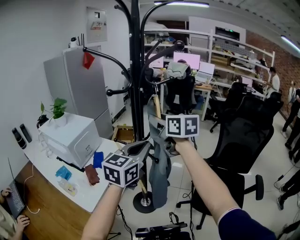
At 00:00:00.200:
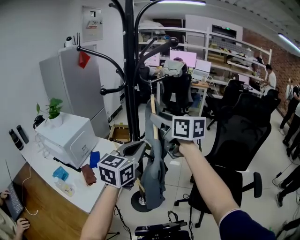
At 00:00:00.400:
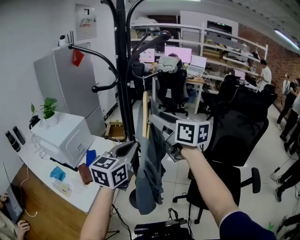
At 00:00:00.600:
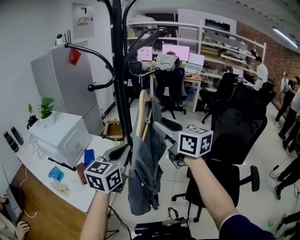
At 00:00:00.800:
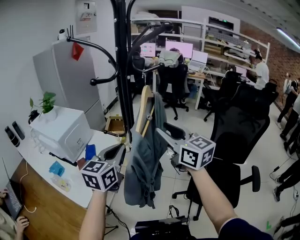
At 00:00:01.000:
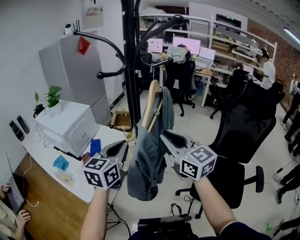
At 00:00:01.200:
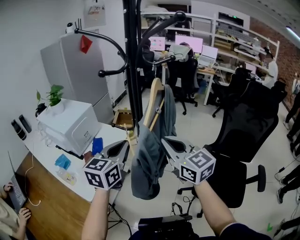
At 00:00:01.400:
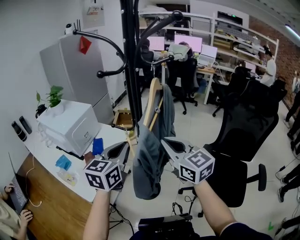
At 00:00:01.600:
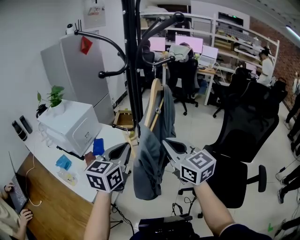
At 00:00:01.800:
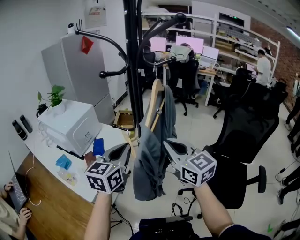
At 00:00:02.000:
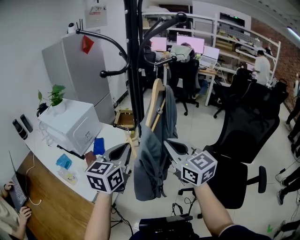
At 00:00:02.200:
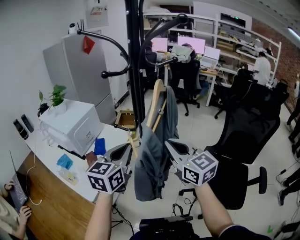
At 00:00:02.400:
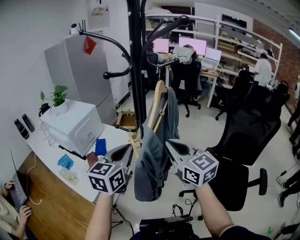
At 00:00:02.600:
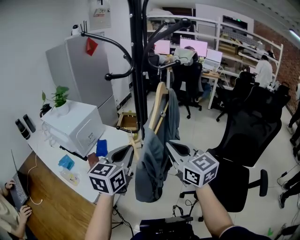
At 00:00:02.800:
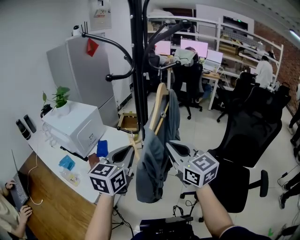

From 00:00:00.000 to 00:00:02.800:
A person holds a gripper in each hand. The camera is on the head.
From 00:00:00.000 to 00:00:01.400: The left gripper is displaced to the left and downward by some 10 cm. Meanwhile the right gripper heads backward and downward, covering about 15 cm, and closes.
From 00:00:01.400 to 00:00:02.800: Neither gripper changes place.

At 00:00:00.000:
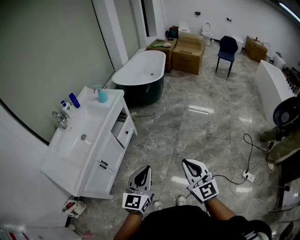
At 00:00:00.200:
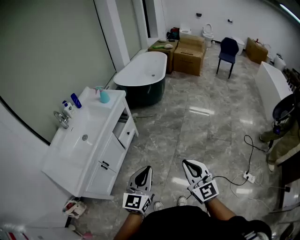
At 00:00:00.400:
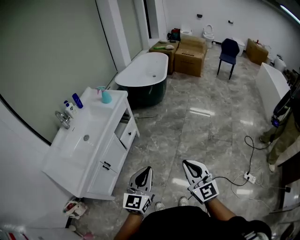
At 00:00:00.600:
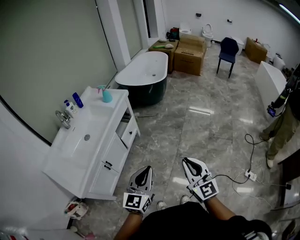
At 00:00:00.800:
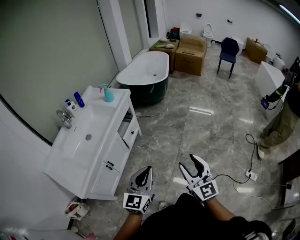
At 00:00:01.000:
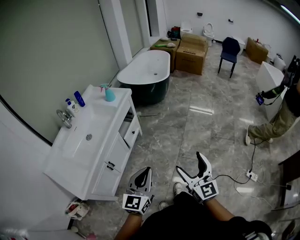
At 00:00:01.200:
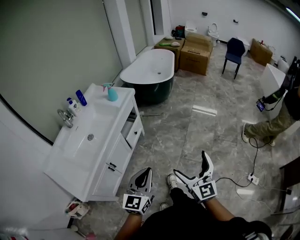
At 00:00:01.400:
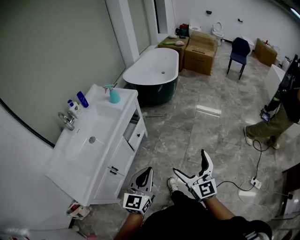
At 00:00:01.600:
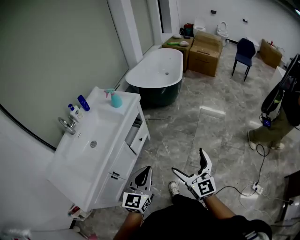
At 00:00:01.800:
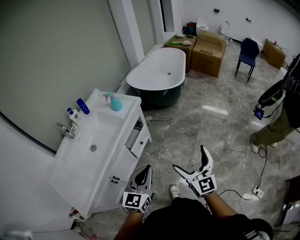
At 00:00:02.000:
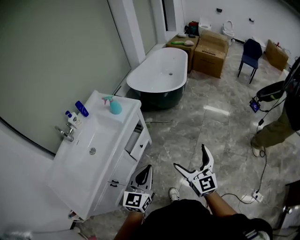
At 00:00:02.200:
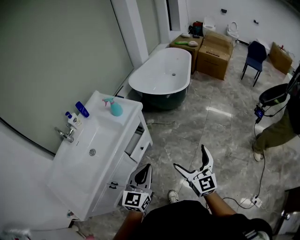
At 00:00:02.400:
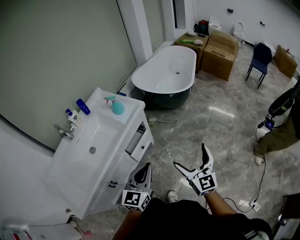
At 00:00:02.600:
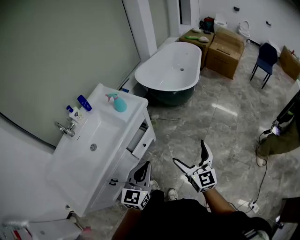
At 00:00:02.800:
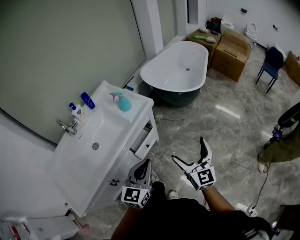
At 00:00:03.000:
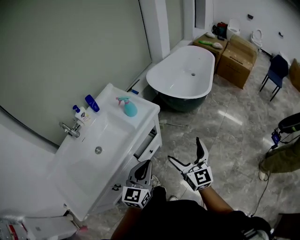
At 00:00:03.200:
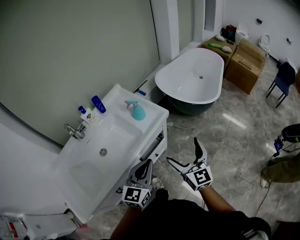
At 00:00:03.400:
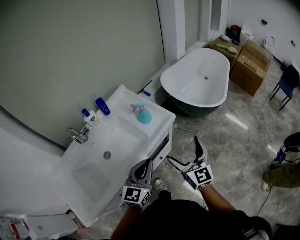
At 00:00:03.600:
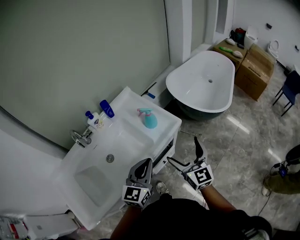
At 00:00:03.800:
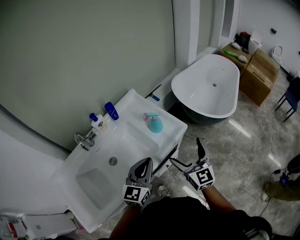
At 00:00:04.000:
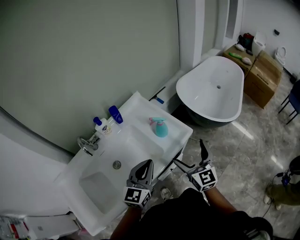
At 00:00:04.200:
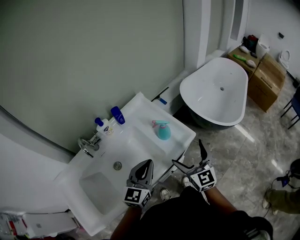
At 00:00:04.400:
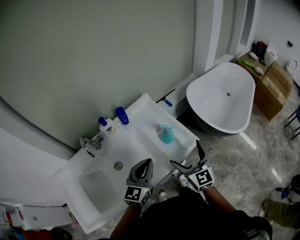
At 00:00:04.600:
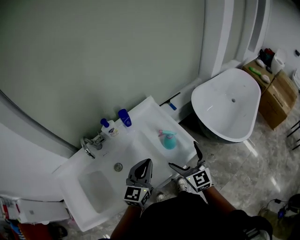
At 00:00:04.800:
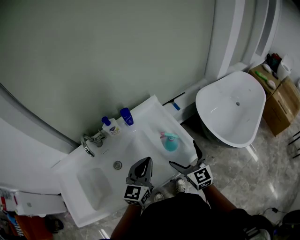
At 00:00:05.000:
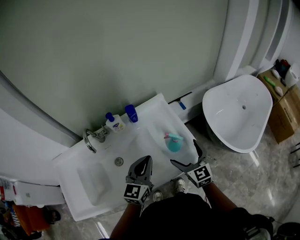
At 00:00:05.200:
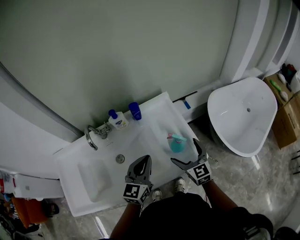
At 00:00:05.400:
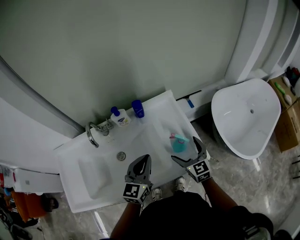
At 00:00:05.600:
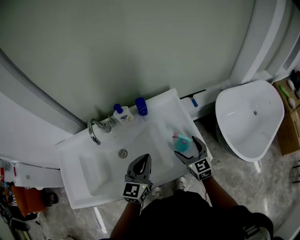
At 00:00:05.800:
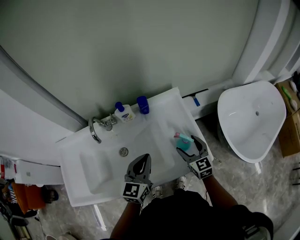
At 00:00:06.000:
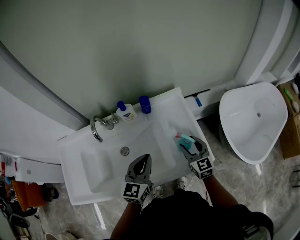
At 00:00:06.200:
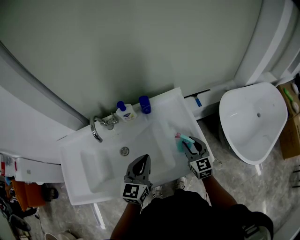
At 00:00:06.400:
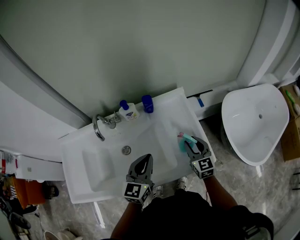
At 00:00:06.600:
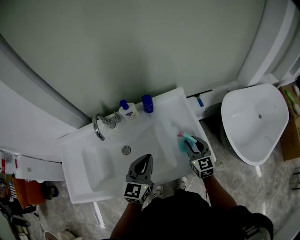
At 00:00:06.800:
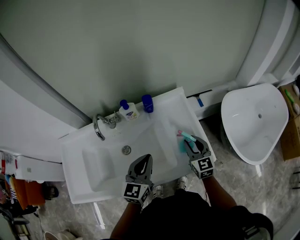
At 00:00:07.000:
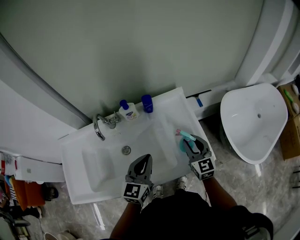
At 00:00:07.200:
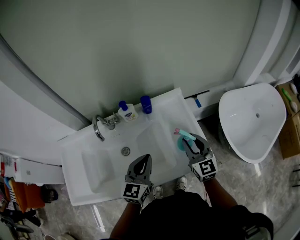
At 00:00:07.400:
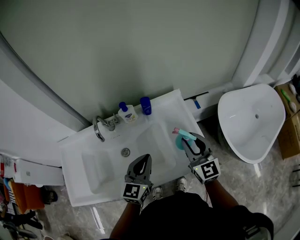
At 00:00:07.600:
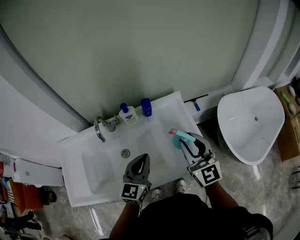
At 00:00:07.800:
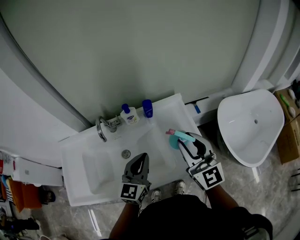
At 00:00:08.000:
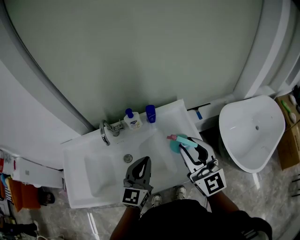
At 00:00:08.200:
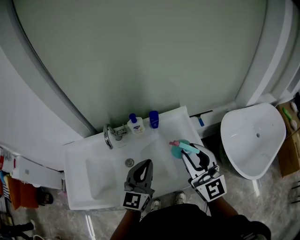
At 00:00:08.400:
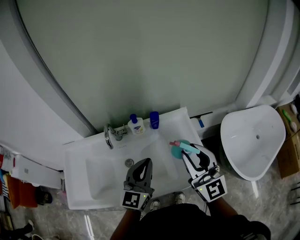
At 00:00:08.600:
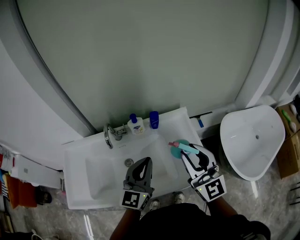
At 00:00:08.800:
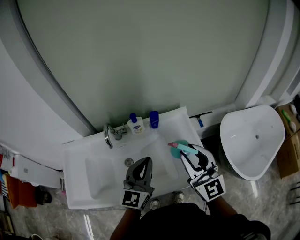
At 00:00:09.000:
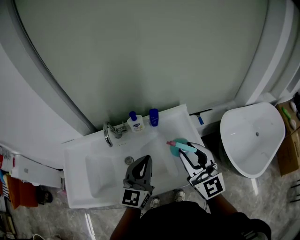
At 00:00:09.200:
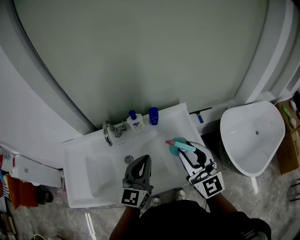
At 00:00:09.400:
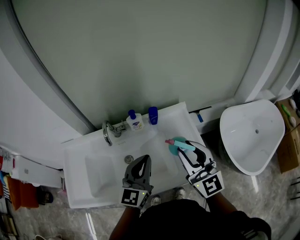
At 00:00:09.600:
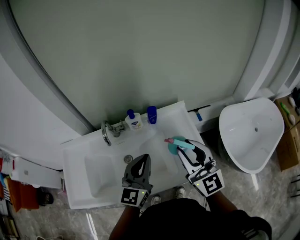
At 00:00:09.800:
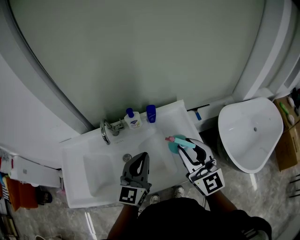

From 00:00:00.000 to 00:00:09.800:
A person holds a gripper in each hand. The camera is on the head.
From 00:00:00.000 to 00:00:01.400: The left gripper goes some 15 cm to the left and forward, while the right gripper goes about 15 cm forward and to the left, and opens.
From 00:00:01.400 to 00:00:02.800: The grippers both shift forward by about 30 cm.
From 00:00:02.800 to 00:00:04.200: Both grippers travel together forward and to the left, approximately 30 cm.
From 00:00:04.200 to 00:00:05.600: The right gripper shifts by approximately 20 cm, and rotates roughly 30 degrees, while the left gripper ends up some 10 cm from where it was, and turns by about 30 degrees.
From 00:00:05.600 to 00:00:07.000: The right gripper closes.
From 00:00:07.000 to 00:00:08.400: The right gripper goes approximately 20 cm upward, and changes its angle by roughly 30 degrees, while the left gripper moves upward, some 10 cm.
From 00:00:08.400 to 00:00:09.800: The grippers make only small movements.

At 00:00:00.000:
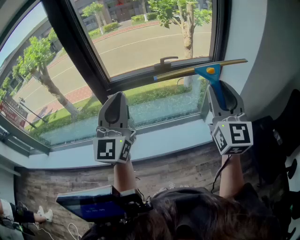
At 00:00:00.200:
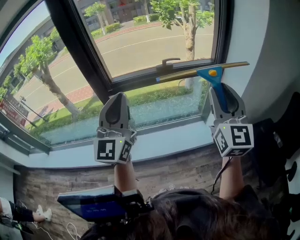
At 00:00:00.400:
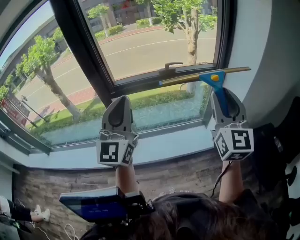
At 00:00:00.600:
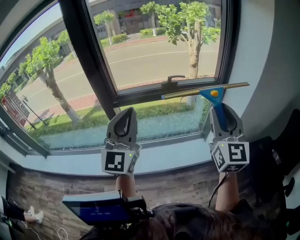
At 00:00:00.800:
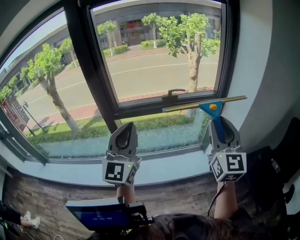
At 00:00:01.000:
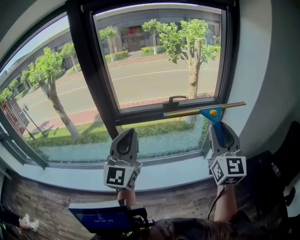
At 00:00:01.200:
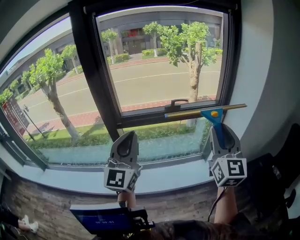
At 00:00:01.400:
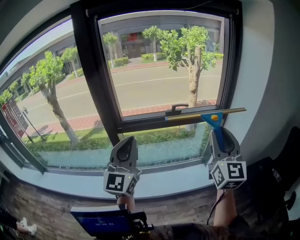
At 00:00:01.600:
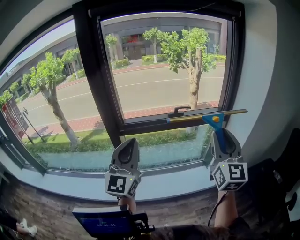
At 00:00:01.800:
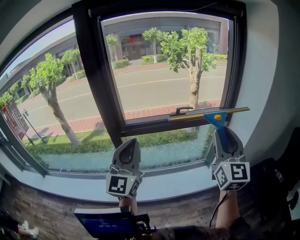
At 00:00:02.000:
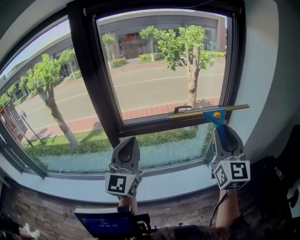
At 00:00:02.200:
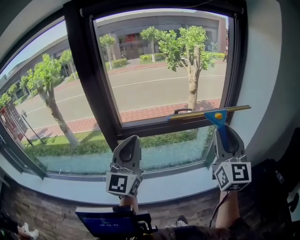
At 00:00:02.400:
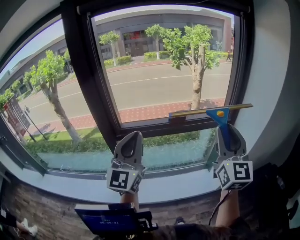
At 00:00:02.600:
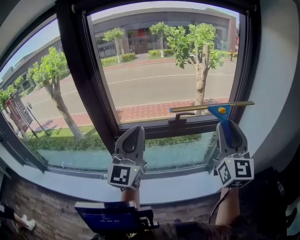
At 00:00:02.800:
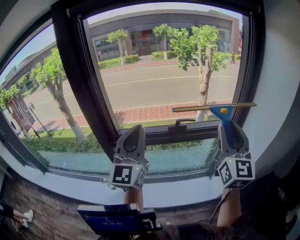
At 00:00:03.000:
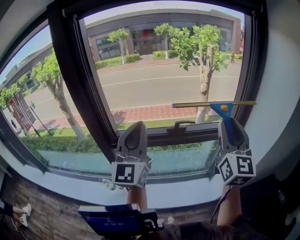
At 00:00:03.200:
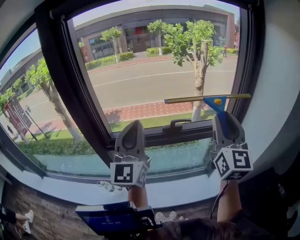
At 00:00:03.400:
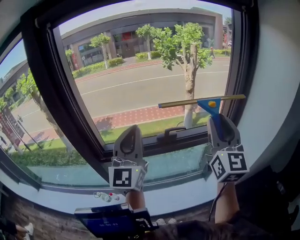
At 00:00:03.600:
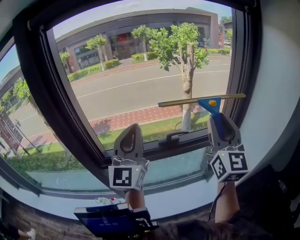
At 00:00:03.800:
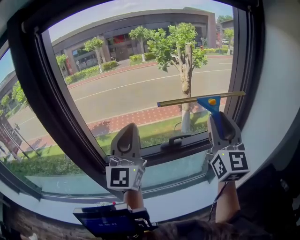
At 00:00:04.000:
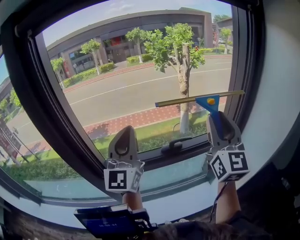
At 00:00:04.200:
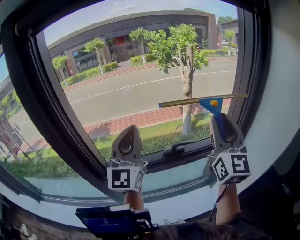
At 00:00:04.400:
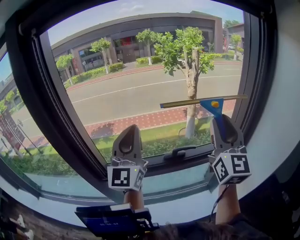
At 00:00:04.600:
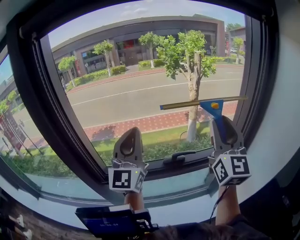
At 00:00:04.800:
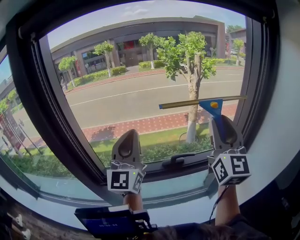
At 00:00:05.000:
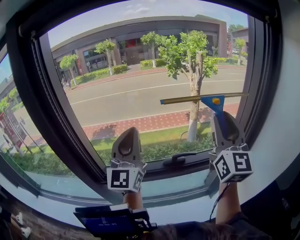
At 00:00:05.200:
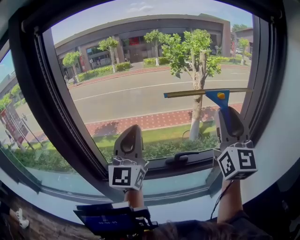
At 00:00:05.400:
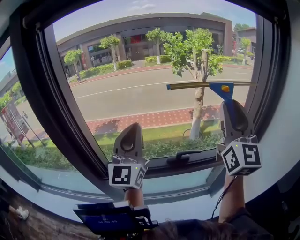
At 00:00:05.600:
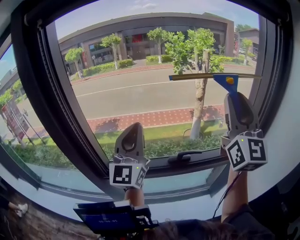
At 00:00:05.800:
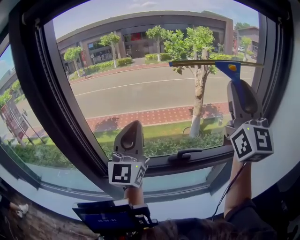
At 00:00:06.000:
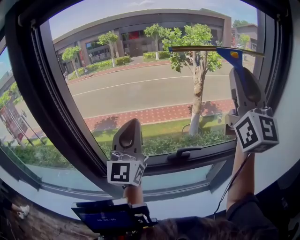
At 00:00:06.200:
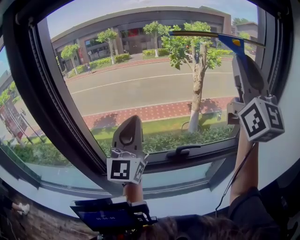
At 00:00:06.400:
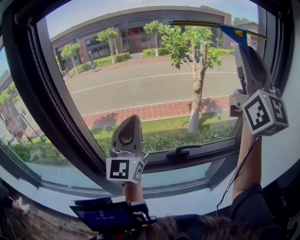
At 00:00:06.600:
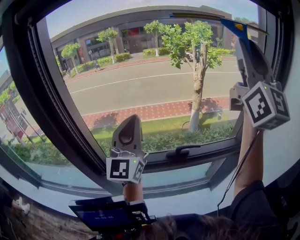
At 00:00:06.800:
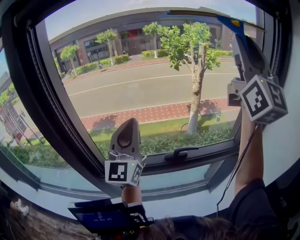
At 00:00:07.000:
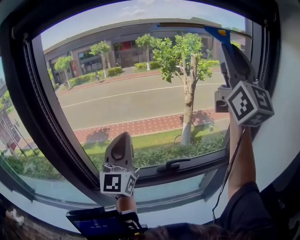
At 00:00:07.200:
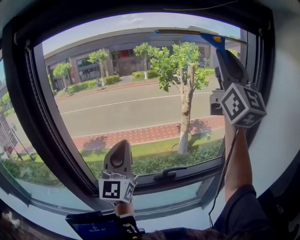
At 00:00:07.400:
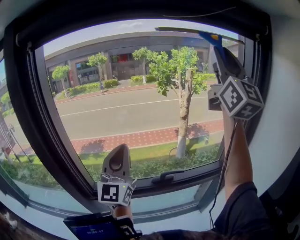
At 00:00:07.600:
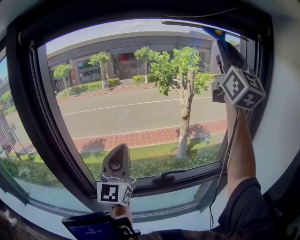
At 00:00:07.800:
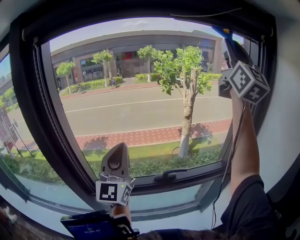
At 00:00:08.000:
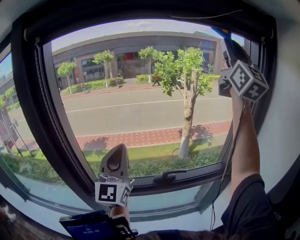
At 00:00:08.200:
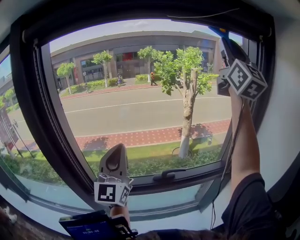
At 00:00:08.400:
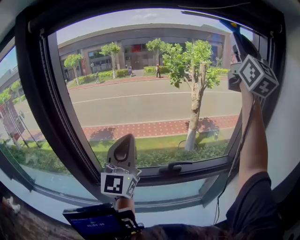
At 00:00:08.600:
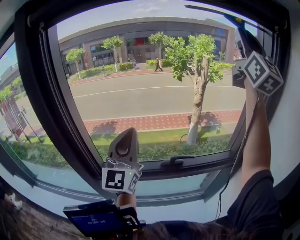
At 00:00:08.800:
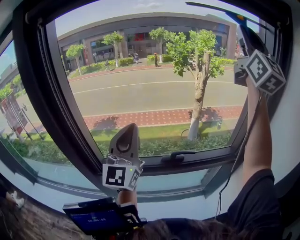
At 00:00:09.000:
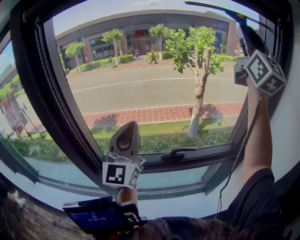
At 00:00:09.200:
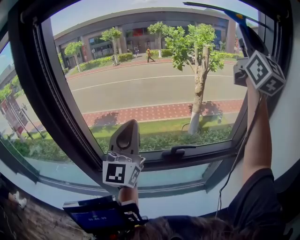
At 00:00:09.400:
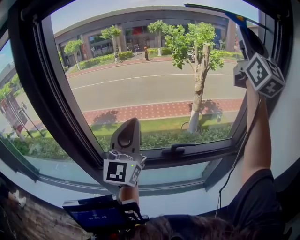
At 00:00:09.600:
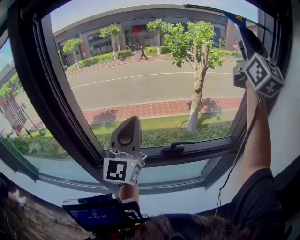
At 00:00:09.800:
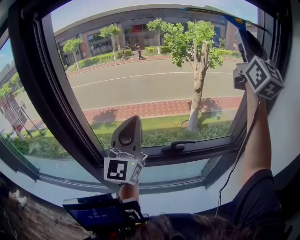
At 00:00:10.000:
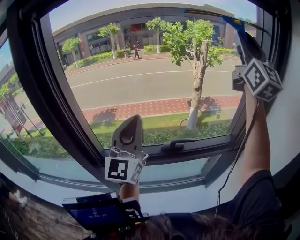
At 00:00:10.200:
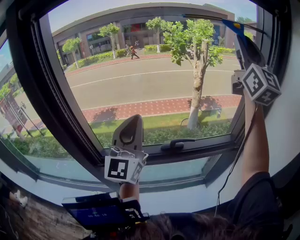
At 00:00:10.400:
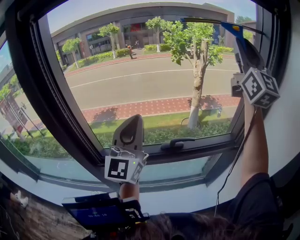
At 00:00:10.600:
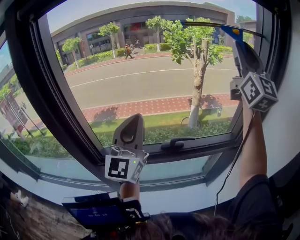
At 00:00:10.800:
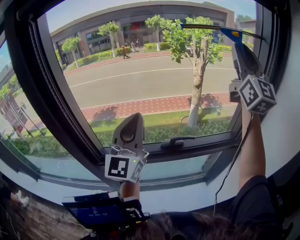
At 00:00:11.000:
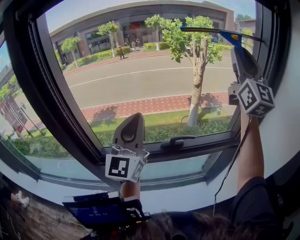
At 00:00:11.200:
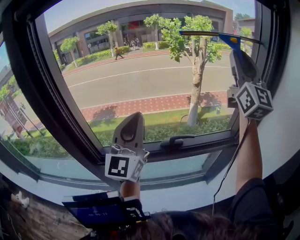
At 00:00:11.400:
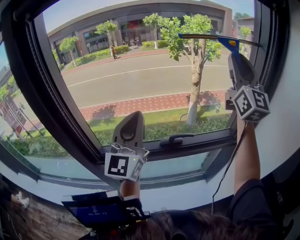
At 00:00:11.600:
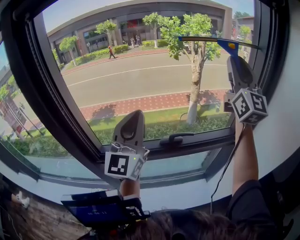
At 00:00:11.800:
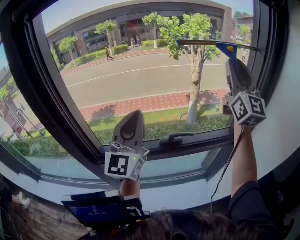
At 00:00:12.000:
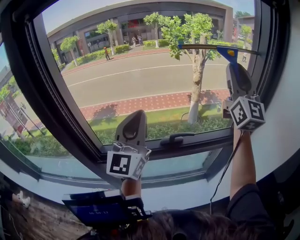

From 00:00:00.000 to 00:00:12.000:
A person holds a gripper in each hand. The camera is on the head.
From 00:00:00.000 to 00:00:01.600: The left gripper is displaced to the left by some 5 cm.
From 00:00:01.600 to 00:00:03.000: Both grippers travel together forward, some 20 cm.
From 00:00:03.000 to 00:00:04.400: Both grippers travel together forward, some 15 cm.
From 00:00:04.400 to 00:00:06.000: The right gripper shifts about 15 cm upward.
From 00:00:06.000 to 00:00:07.600: The right gripper goes about 15 cm upward.
From 00:00:07.600 to 00:00:09.000: The grippers make only small movements.
From 00:00:09.000 to 00:00:10.400: The right gripper shifts about 10 cm downward.
From 00:00:10.400 to 00:00:12.000: The right gripper travels downward by about 10 cm.
